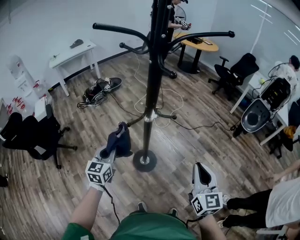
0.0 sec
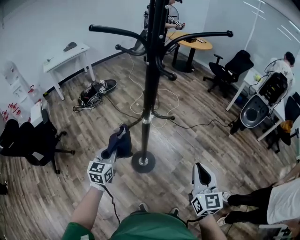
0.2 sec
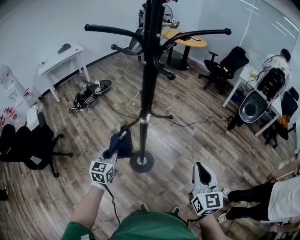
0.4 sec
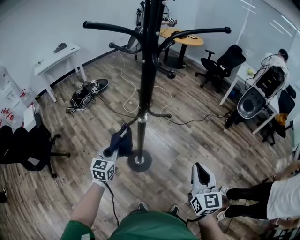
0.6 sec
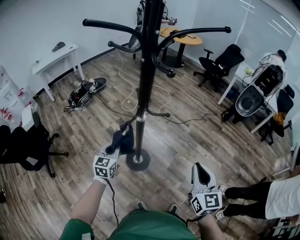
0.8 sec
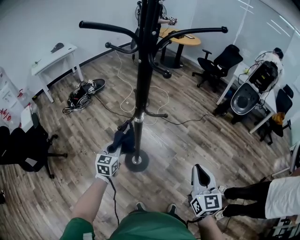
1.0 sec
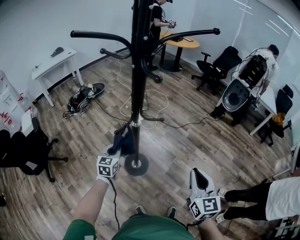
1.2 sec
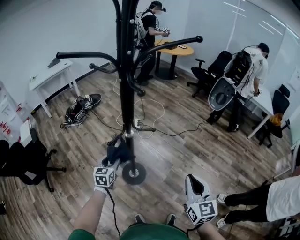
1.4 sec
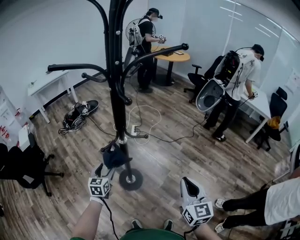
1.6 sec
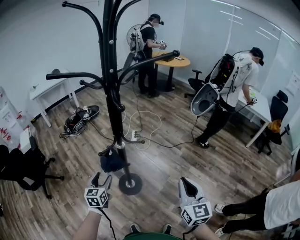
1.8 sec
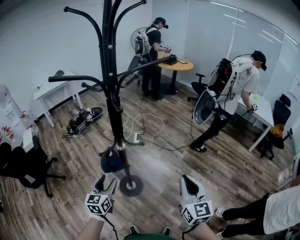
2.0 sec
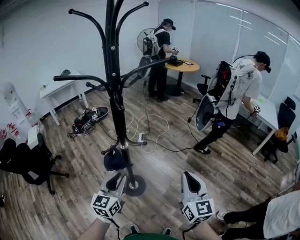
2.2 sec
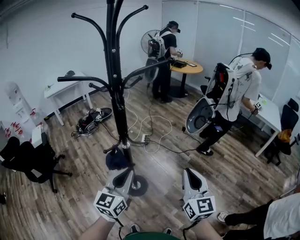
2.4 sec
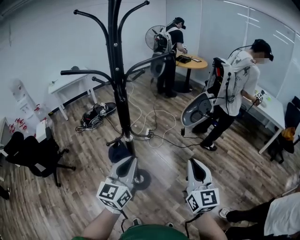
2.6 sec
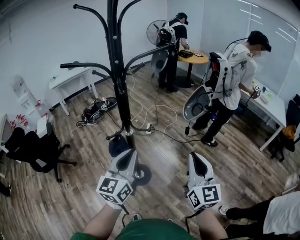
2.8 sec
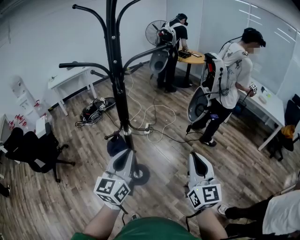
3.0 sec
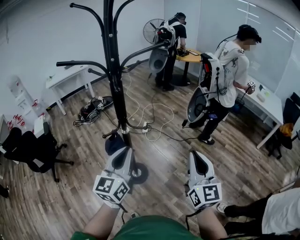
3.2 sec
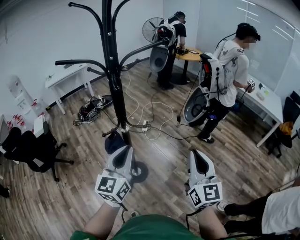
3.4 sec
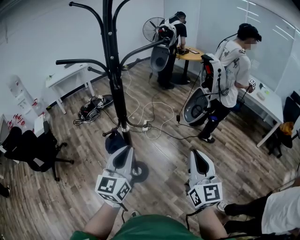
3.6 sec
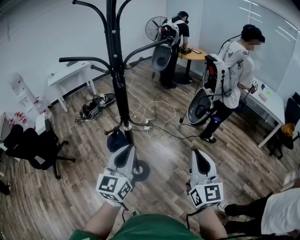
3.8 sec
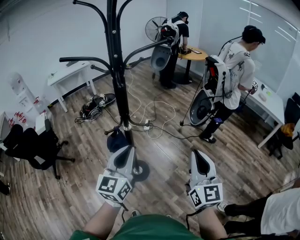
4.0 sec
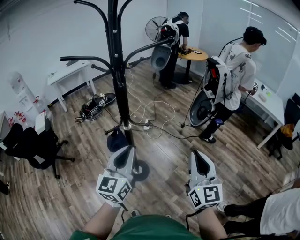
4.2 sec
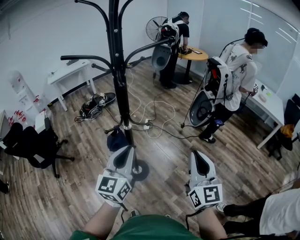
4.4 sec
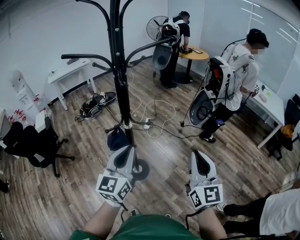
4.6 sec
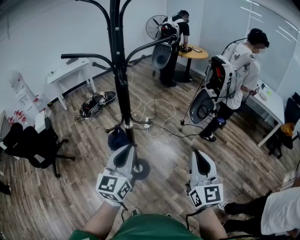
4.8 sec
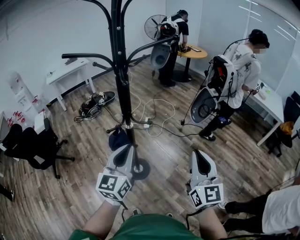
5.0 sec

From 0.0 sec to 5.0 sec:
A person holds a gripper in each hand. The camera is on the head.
From 0.0 sec to 1.6 sec: The left gripper goes roughly 10 cm downward, forward and to the right, and opens; the right gripper shifts some 5 cm to the right.
From 1.6 sec to 3.4 sec: The left gripper moves upward and to the right, approximately 35 cm, tips its fingers upward by some 30 degrees, and closes. Meanwhile the right gripper heads upward and to the right, covering roughly 15 cm.
From 3.4 sec to 5.0 sec: The grippers move only a little.

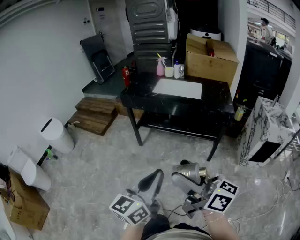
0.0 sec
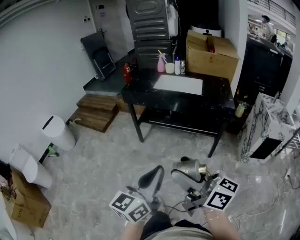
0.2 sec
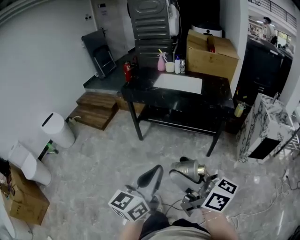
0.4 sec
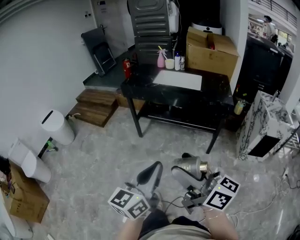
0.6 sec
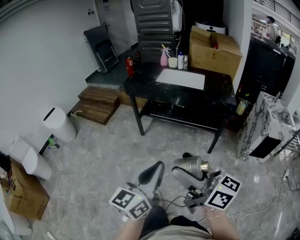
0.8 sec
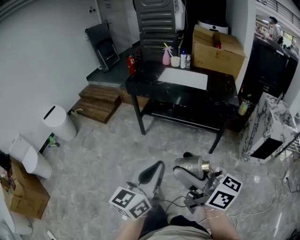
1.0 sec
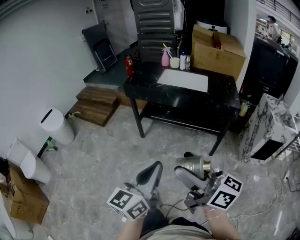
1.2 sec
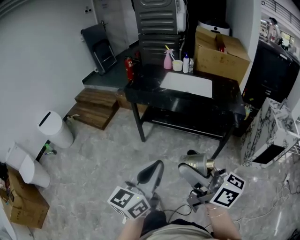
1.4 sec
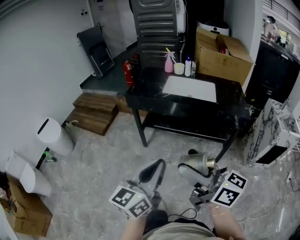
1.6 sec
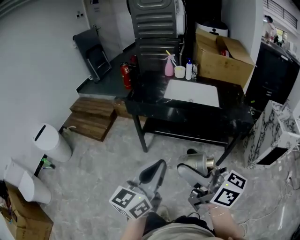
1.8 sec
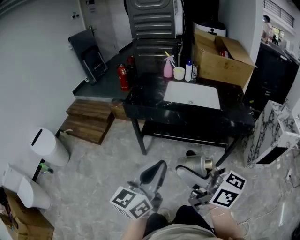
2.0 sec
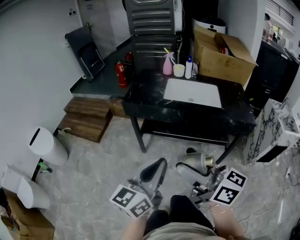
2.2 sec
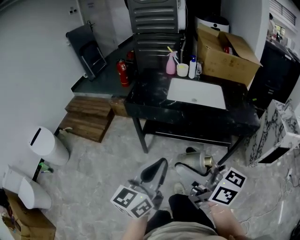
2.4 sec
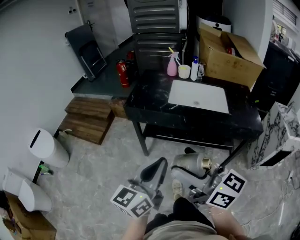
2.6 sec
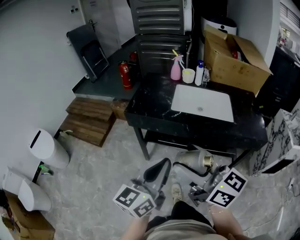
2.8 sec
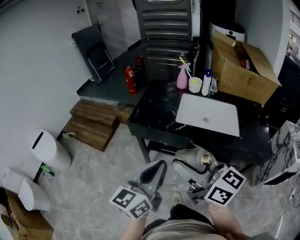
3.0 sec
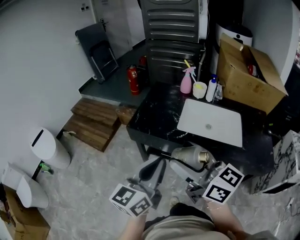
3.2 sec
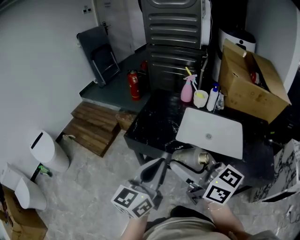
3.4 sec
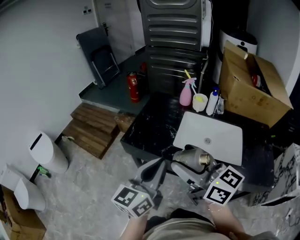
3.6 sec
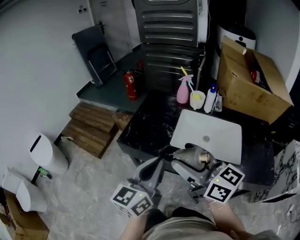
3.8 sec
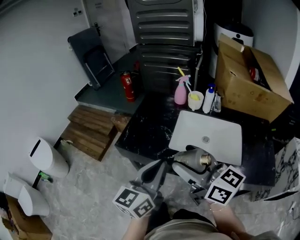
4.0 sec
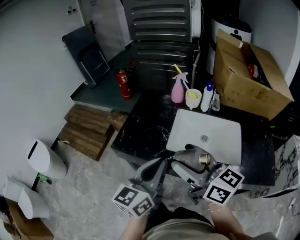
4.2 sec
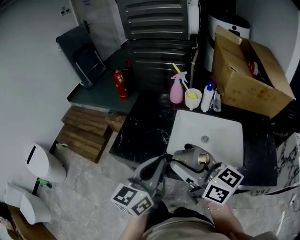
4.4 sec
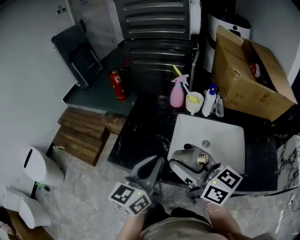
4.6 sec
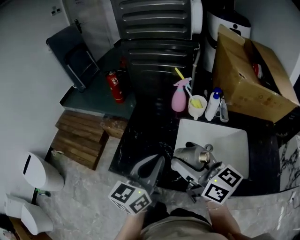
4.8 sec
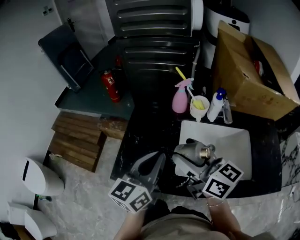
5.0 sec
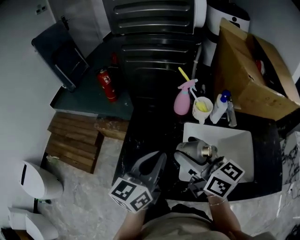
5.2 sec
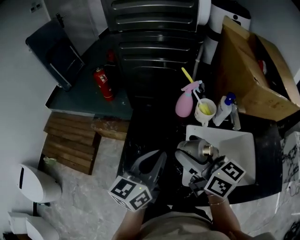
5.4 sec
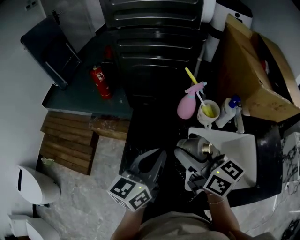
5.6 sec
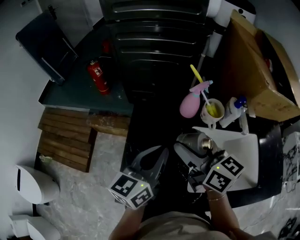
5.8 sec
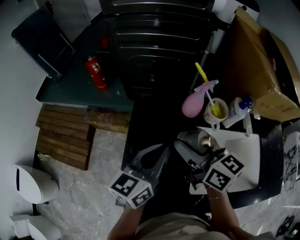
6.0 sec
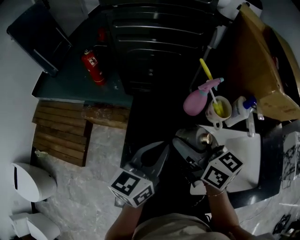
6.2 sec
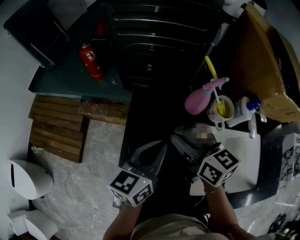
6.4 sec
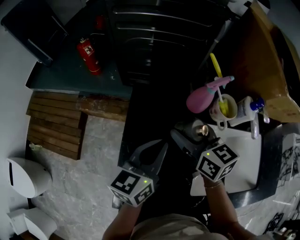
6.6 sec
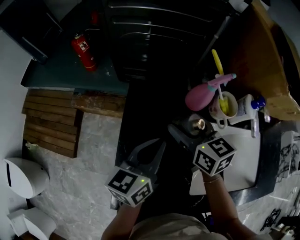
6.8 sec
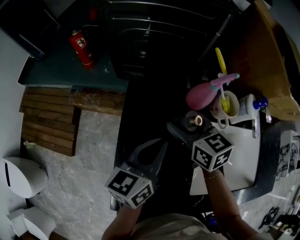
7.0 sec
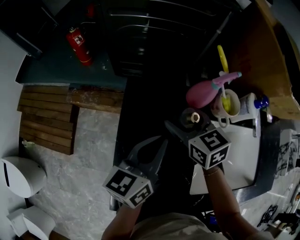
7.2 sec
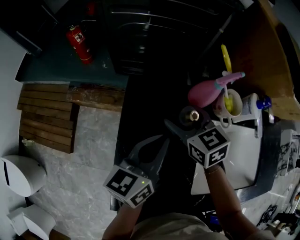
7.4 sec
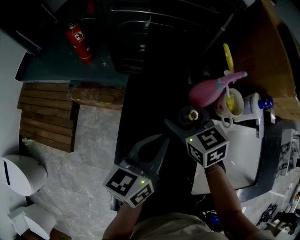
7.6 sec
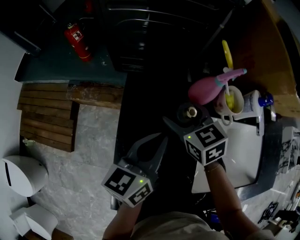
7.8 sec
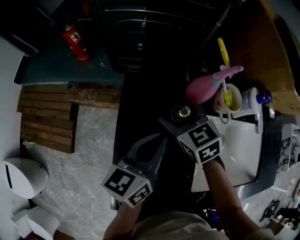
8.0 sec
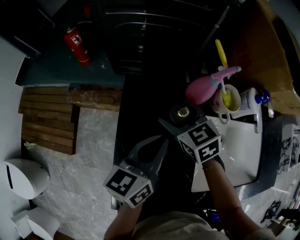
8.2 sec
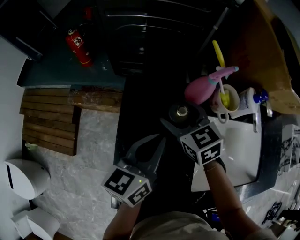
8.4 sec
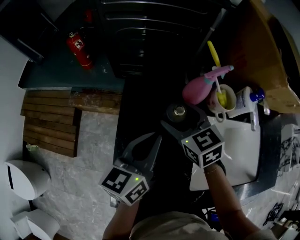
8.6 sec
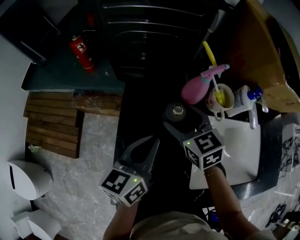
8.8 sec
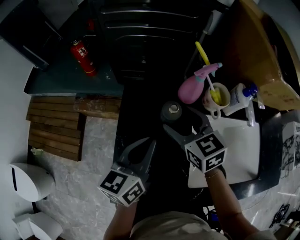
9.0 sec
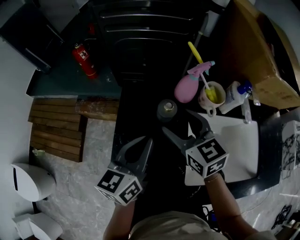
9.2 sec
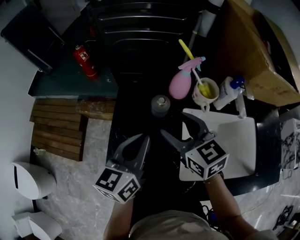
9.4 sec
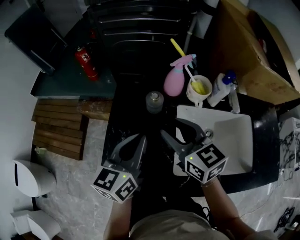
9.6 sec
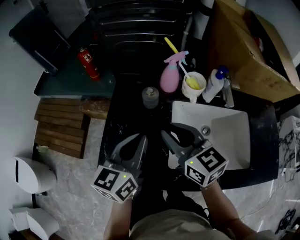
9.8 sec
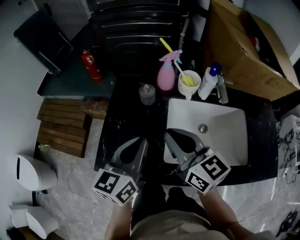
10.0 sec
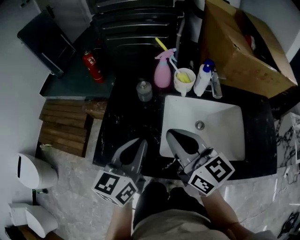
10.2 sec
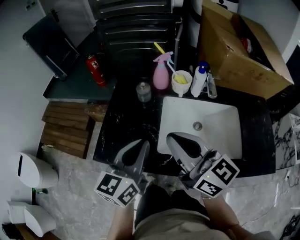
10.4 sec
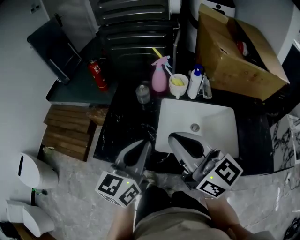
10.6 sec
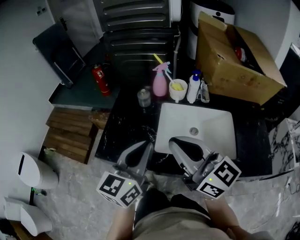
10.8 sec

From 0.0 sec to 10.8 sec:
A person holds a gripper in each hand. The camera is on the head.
From 0.0 sec to 1.6 sec: The right gripper travels forward by about 20 cm, while the left gripper goes some 20 cm forward and to the left.
From 1.6 sec to 3.0 sec: The grippers both shift forward by roughly 35 cm.
From 3.0 sec to 4.6 sec: Both grippers travel together forward, roughly 30 cm.
From 4.6 sec to 6.2 sec: The two grippers go about 30 cm forward. The right gripper rotates approximately 20 degrees.
From 6.2 sec to 7.8 sec: The left gripper travels downward by about 5 cm, while the right gripper heads downward and forward, covering approximately 15 cm, and swivels roughly 30 degrees.
From 7.8 sec to 9.2 sec: The left gripper goes roughly 5 cm backward; the right gripper is displaced backward and upward by approximately 10 cm.
From 9.2 sec to 10.8 sec: The right gripper goes about 35 cm backward and upward, tips its fingers upward by about 30 degrees, and closes up, while the left gripper heads backward, upward and to the right, covering some 30 cm.

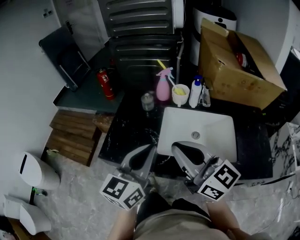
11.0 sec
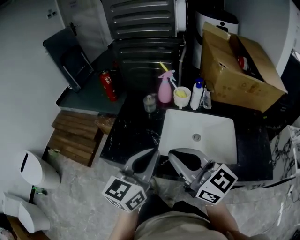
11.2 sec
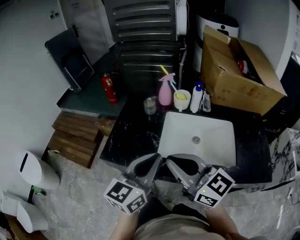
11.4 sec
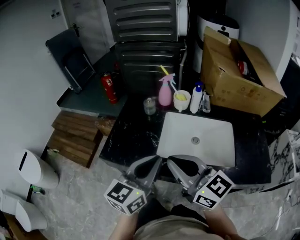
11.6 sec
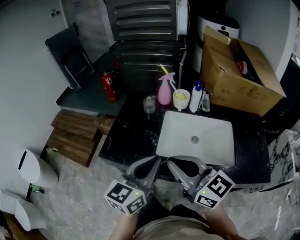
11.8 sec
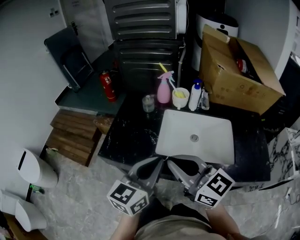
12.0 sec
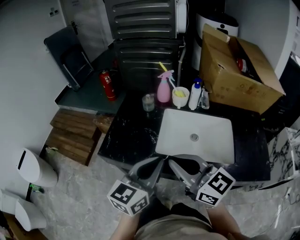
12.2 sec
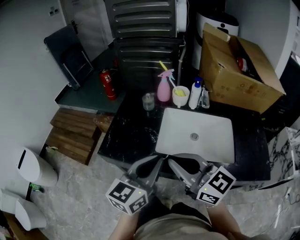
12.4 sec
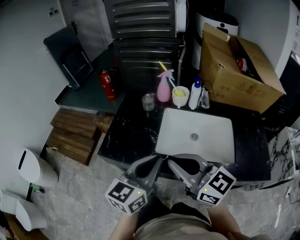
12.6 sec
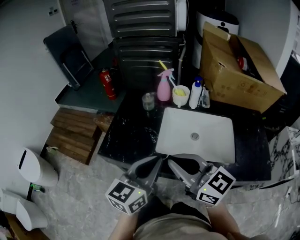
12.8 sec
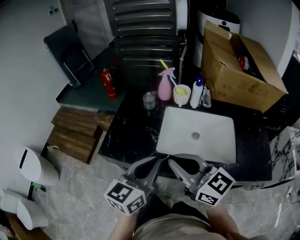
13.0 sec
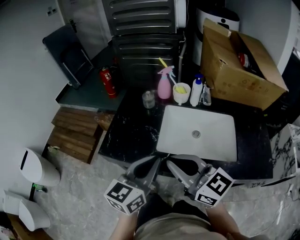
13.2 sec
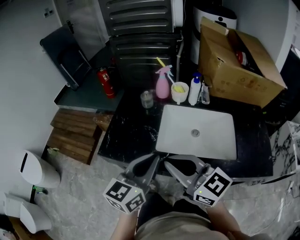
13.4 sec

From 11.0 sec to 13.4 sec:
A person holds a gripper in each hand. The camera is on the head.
From 11.0 sec to 12.2 sec: The right gripper ends up approximately 5 cm from where it was. Meanwhile the left gripper changes place by roughly 5 cm.
From 12.2 sec to 13.4 sec: The grippers make only small movements.

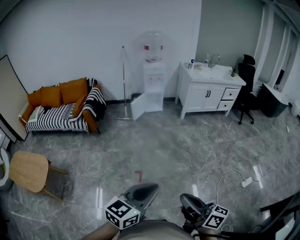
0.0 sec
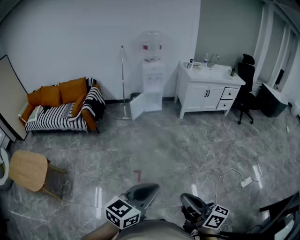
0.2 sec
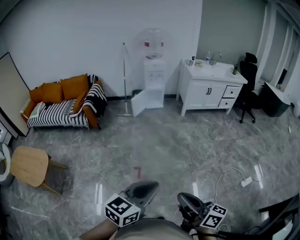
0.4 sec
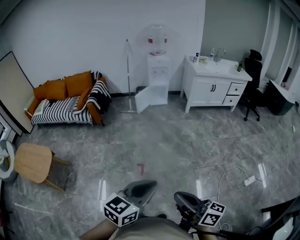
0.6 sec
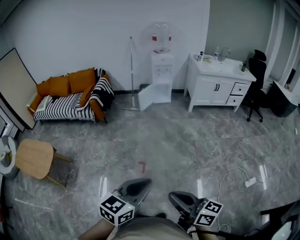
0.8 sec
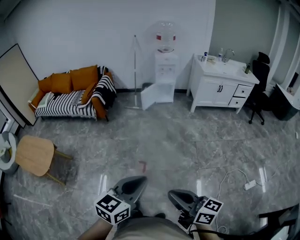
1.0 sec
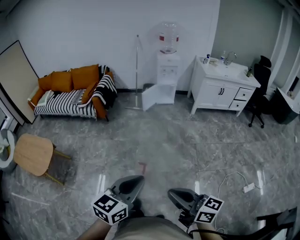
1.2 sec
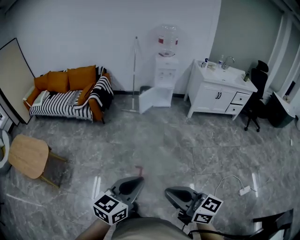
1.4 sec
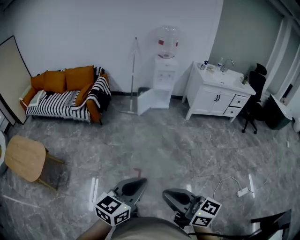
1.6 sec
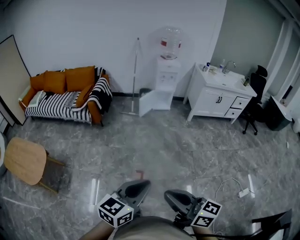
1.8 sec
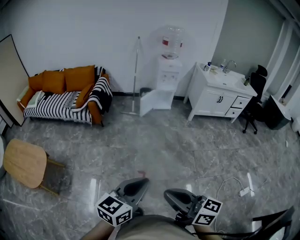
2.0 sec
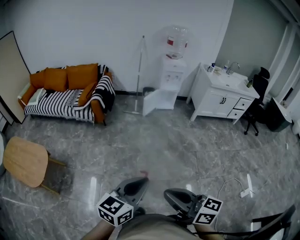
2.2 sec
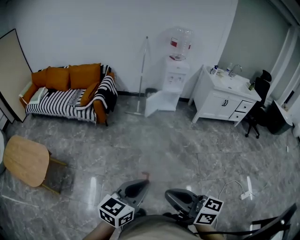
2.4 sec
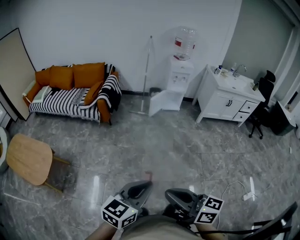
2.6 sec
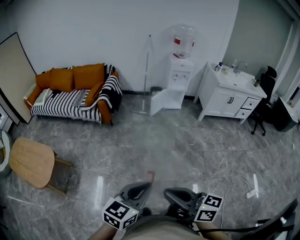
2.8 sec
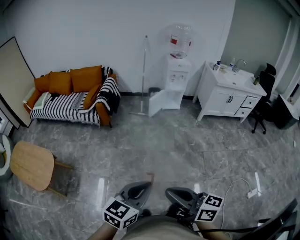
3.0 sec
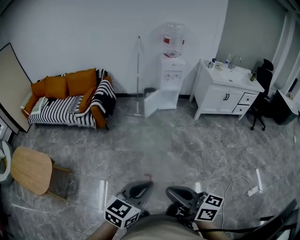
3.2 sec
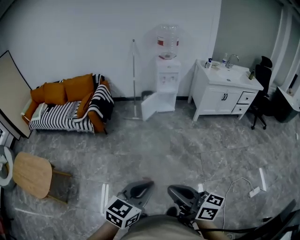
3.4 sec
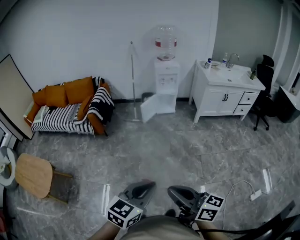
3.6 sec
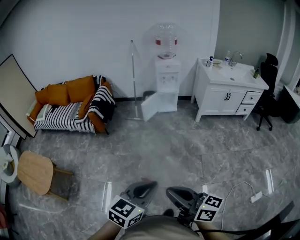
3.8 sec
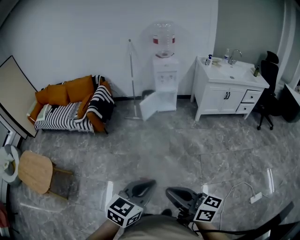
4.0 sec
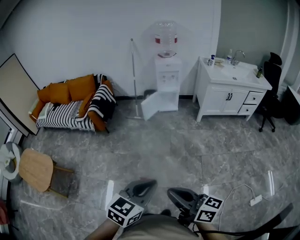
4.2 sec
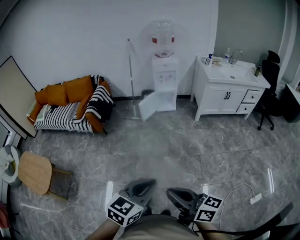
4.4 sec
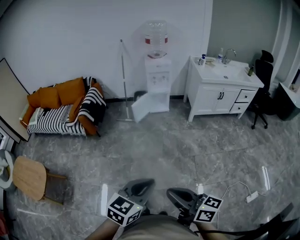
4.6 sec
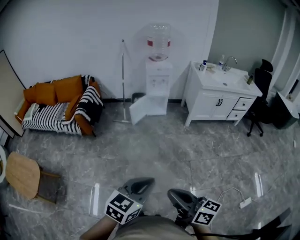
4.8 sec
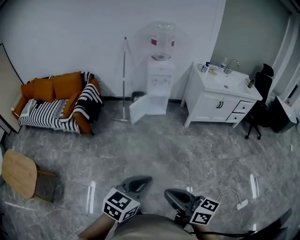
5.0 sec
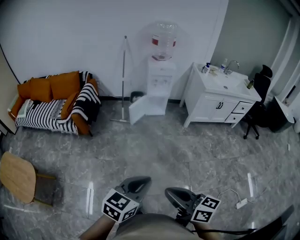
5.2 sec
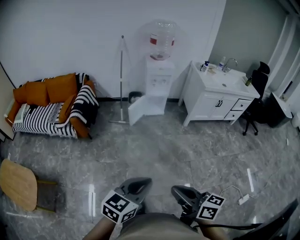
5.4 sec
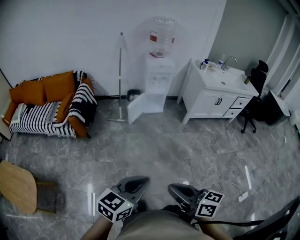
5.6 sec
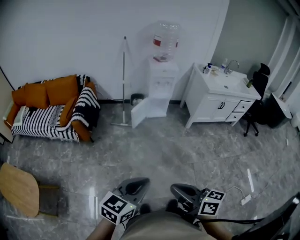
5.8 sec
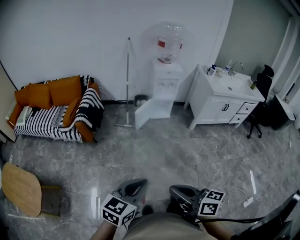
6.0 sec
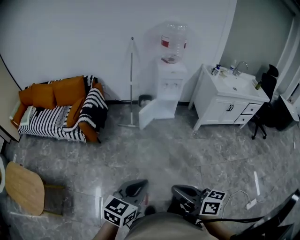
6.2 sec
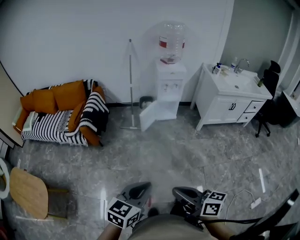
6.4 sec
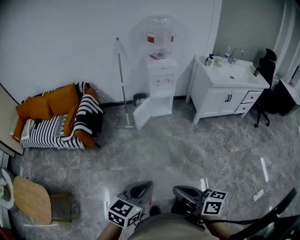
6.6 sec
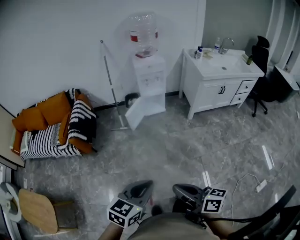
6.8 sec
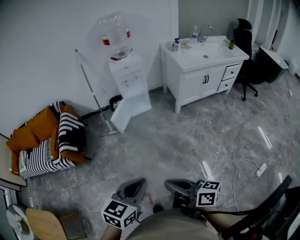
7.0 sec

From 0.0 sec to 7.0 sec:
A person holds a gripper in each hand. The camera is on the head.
From 0.0 sec to 1.4 sec: The two grippers go roughly 10 cm to the left and forward. The right gripper rotates roughly 30 degrees.
From 1.4 sec to 2.8 sec: Both grippers travel together to the left and forward, roughly 20 cm.
From 2.8 sec to 4.2 sec: Both grippers move to the right, roughly 30 cm.
From 4.2 sec to 5.6 sec: Both grippers move forward and to the left, some 20 cm.
From 5.6 sec to 7.0 sec: Both grippers travel together forward and to the right, approximately 20 cm.
